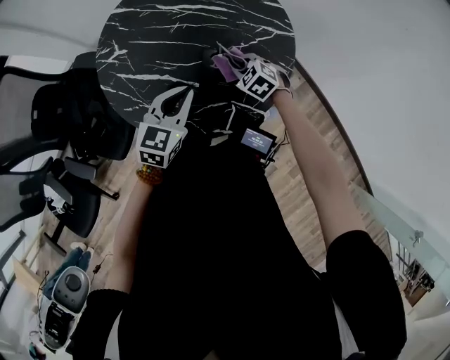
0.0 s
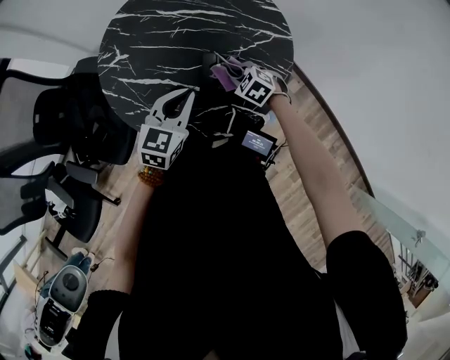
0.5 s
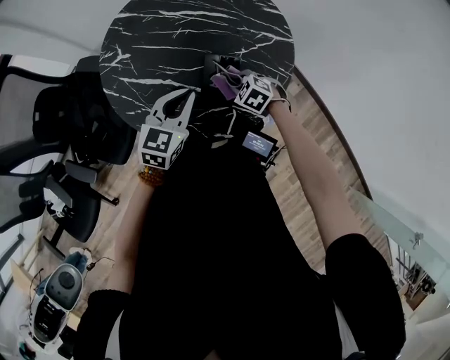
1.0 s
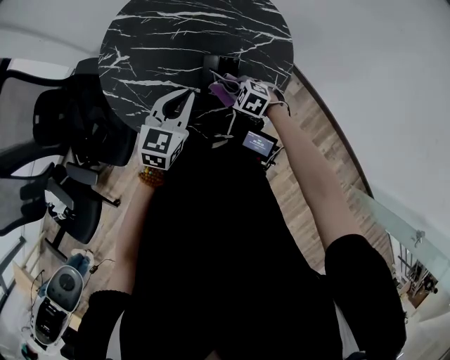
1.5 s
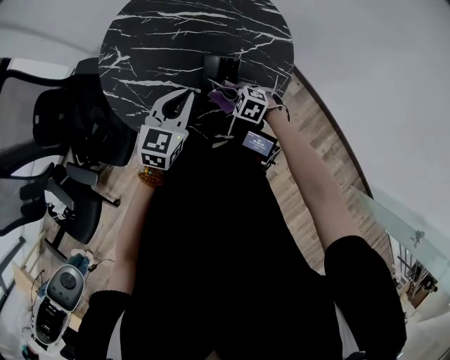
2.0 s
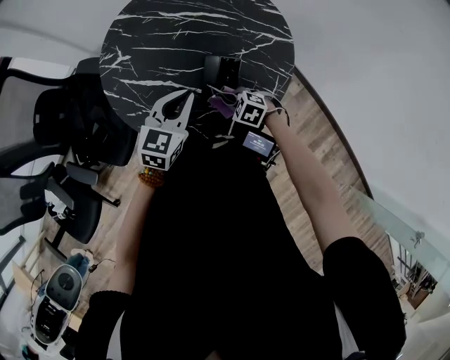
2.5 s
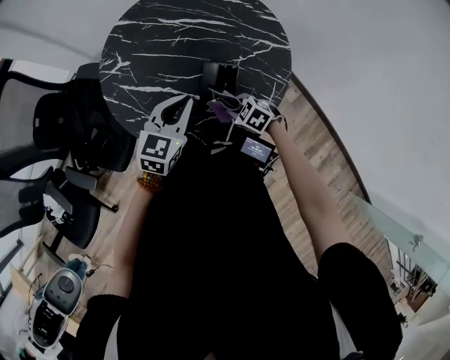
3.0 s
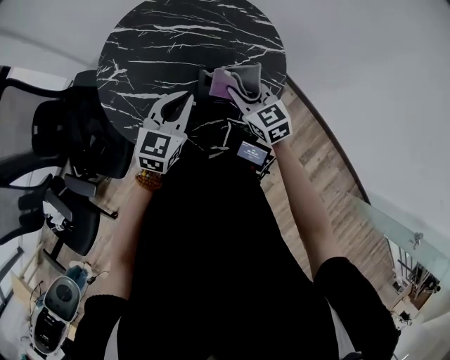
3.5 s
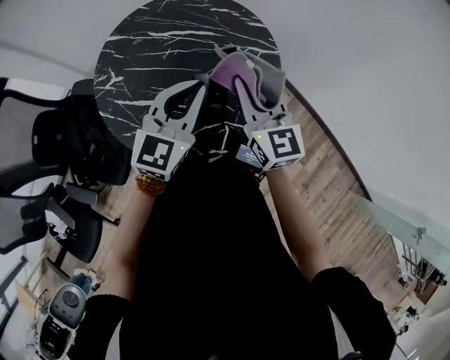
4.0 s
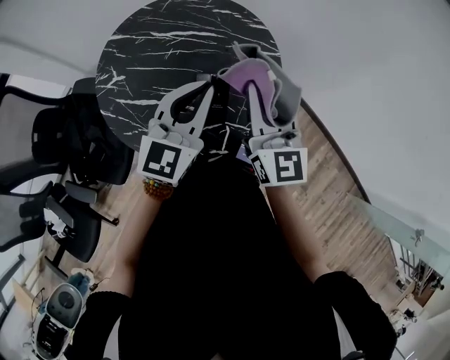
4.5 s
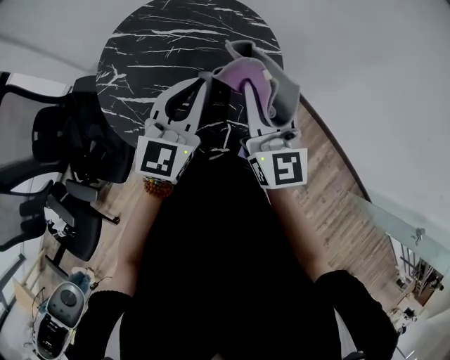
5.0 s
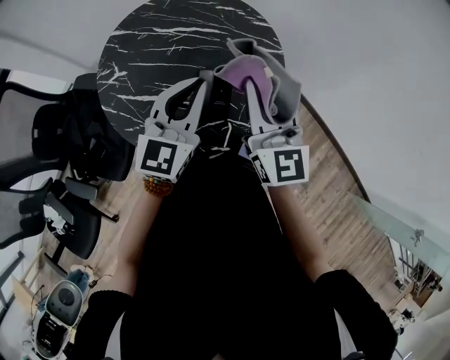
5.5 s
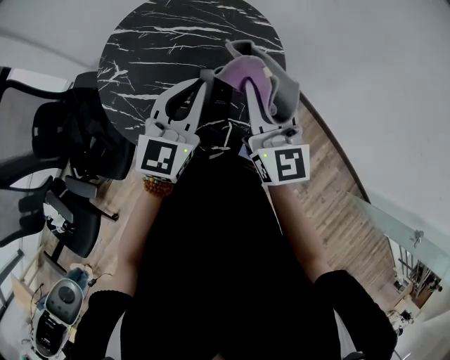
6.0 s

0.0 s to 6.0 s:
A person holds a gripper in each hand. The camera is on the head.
0.0 to 2.0 s: The right gripper moves backward, roughly 10 cm.
2.0 to 4.0 s: The left gripper travels upward by roughly 15 cm. The right gripper is displaced upward by about 35 cm, and tips its fingers upward by about 60 degrees.
4.0 to 6.0 s: The right gripper is displaced upward by approximately 5 cm.

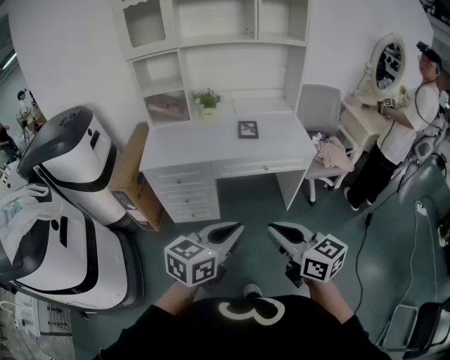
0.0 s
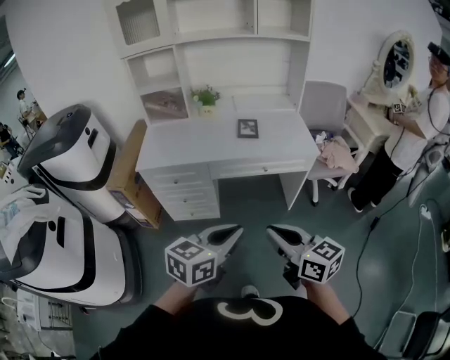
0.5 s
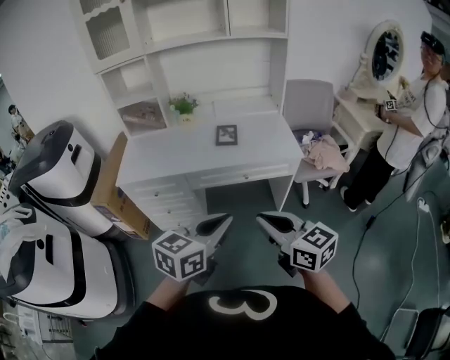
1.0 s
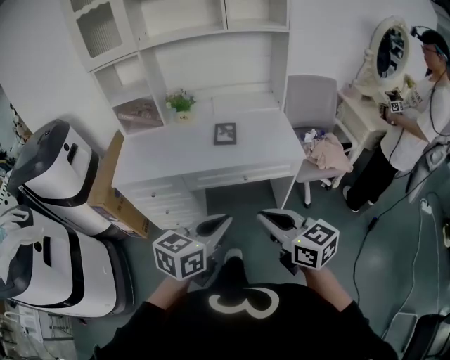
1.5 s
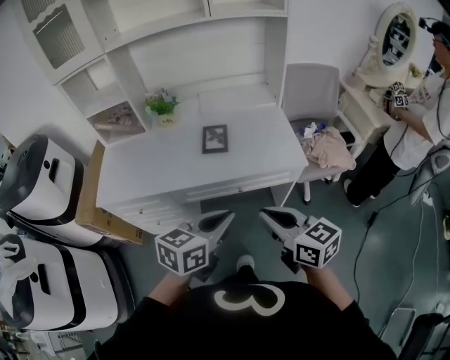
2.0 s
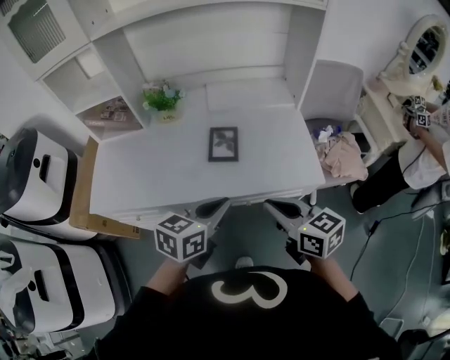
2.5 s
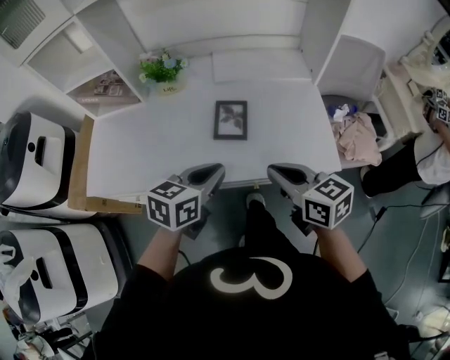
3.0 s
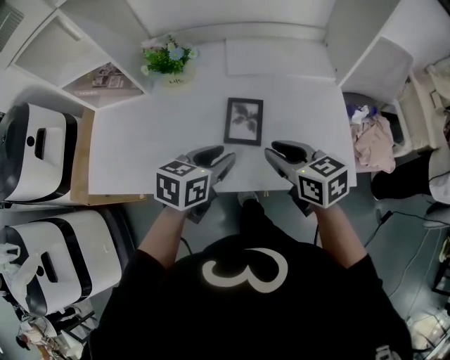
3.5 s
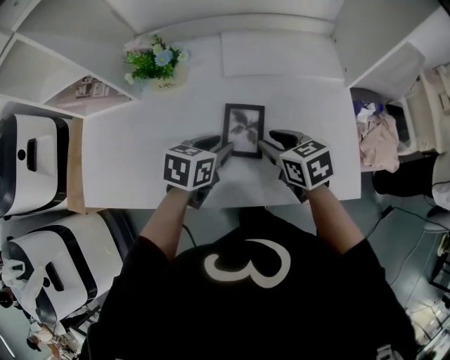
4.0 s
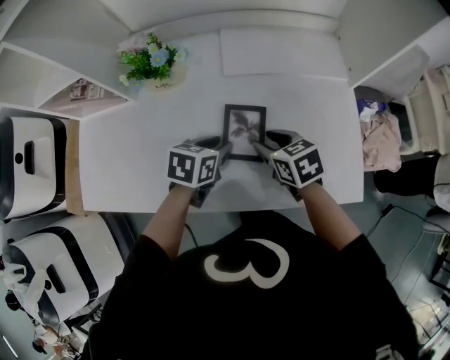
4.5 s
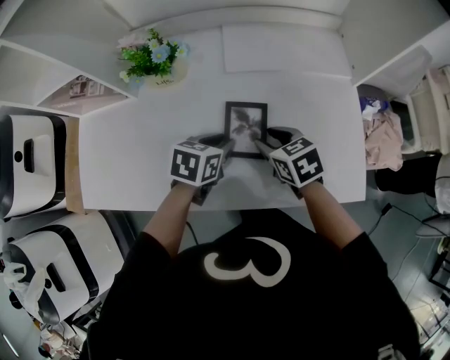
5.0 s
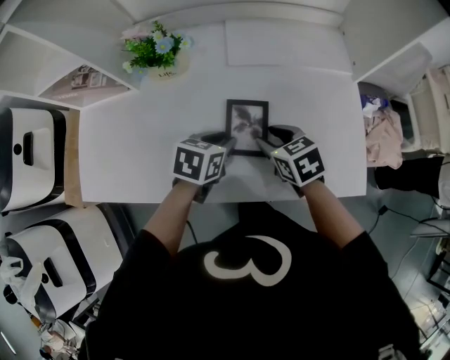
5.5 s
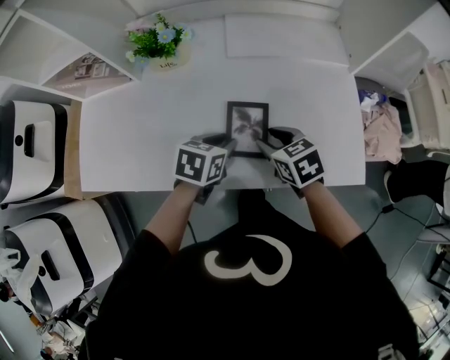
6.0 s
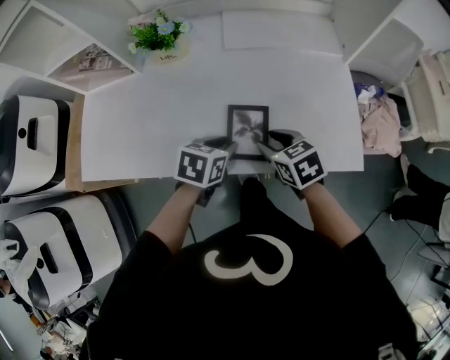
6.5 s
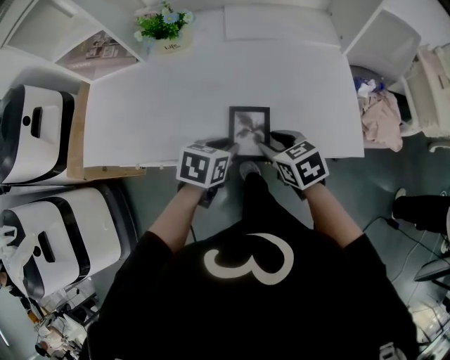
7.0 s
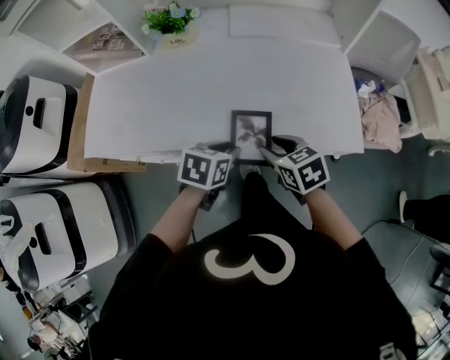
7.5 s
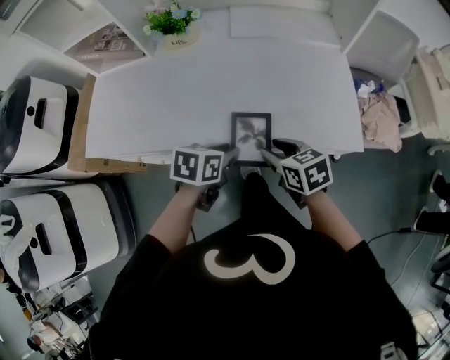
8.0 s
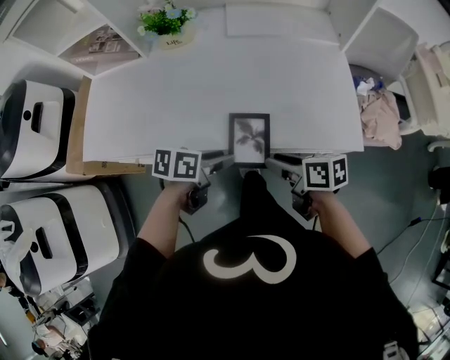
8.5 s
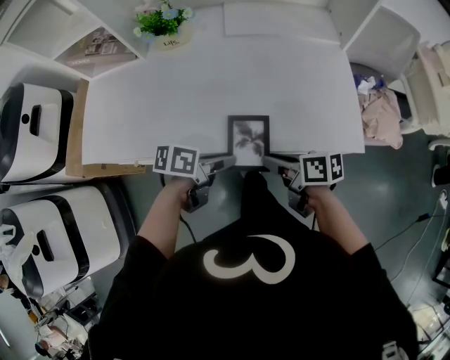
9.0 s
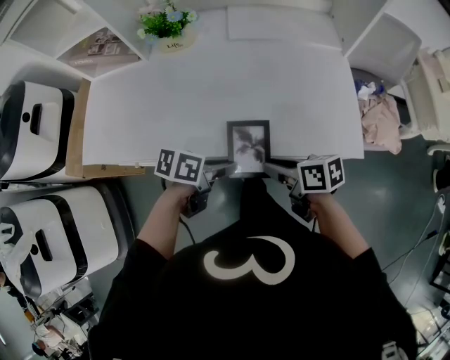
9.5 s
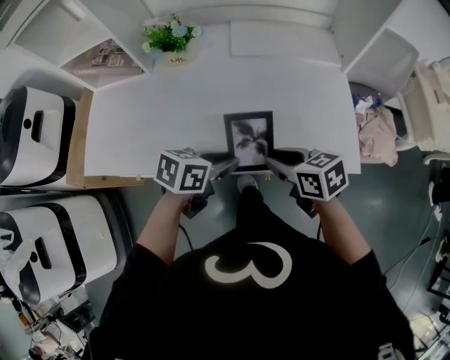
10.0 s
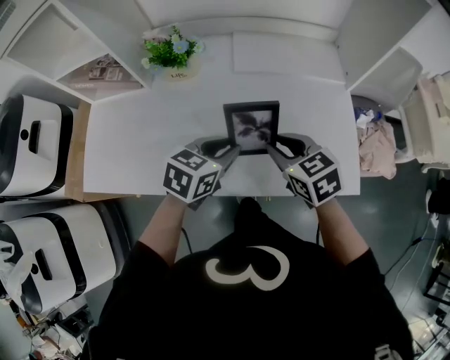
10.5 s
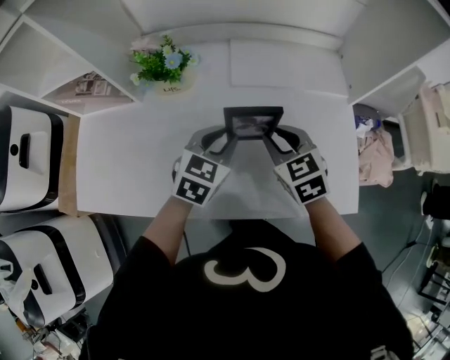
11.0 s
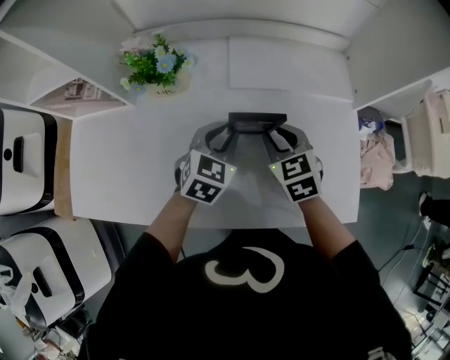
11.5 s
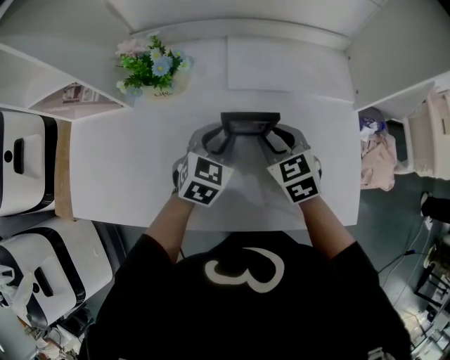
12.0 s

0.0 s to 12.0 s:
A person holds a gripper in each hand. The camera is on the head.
0.0 to 2.0 s: The grippers both shift forward and to the right by about 35 cm.
2.0 to 4.0 s: The pair of grippers is taken forward, roughly 40 cm. Both grippers move downward, approximately 20 cm. The left gripper turns by about 30 degrees, and opens its fingers. The right gripper changes its angle by approximately 30 degrees, and opens up.
4.0 to 6.0 s: The right gripper ends up approximately 5 cm from where it was. The left gripper changes place by approximately 5 cm.
6.0 to 8.0 s: Both grippers move backward, about 15 cm.
8.0 to 10.0 s: The right gripper shifts by approximately 5 cm. The left gripper moves some 5 cm.
10.0 to 12.0 s: The grippers both shift forward by about 25 cm. The right gripper turns by approximately 30 degrees, while the left gripper swivels about 40 degrees.

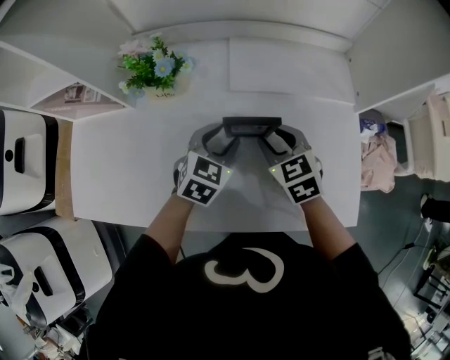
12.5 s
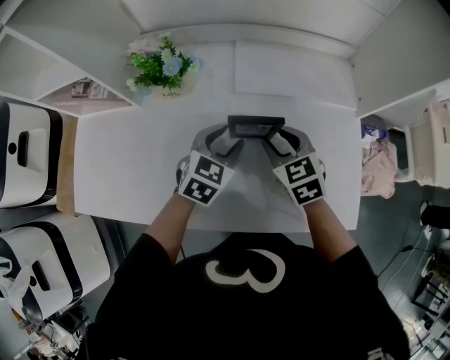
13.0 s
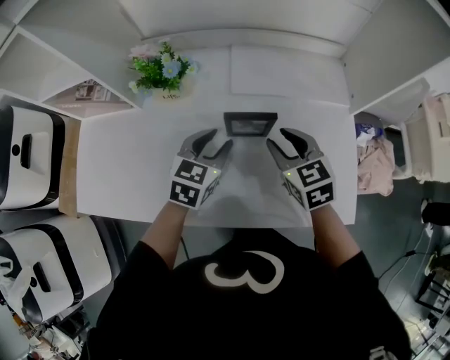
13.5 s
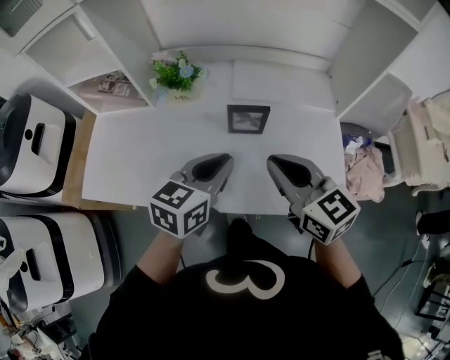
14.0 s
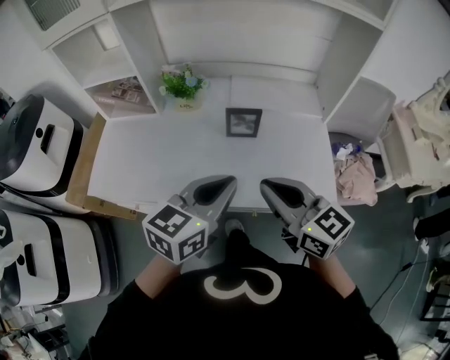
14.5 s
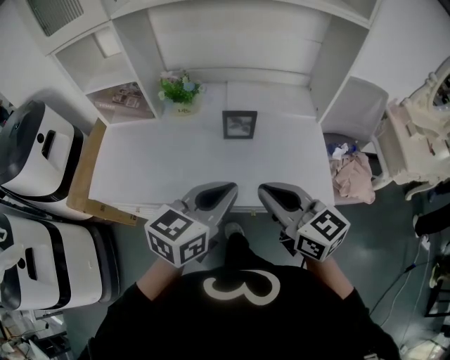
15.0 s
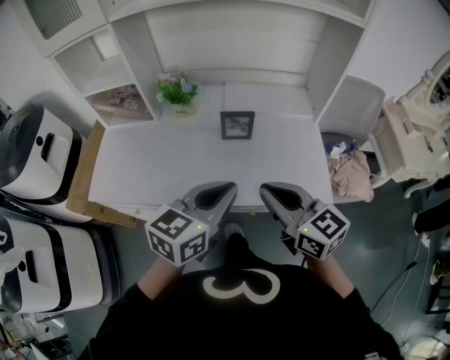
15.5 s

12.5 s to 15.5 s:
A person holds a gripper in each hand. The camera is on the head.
12.5 to 14.0 s: The grippers both shift upward and backward by about 25 cm. The left gripper swivels about 30 degrees, and closes its fingers, while the right gripper rotates about 30 degrees, and closes.
14.0 to 15.5 s: The left gripper is displaced backward and upward by about 15 cm. Meanwhile the right gripper heads backward, covering about 15 cm.

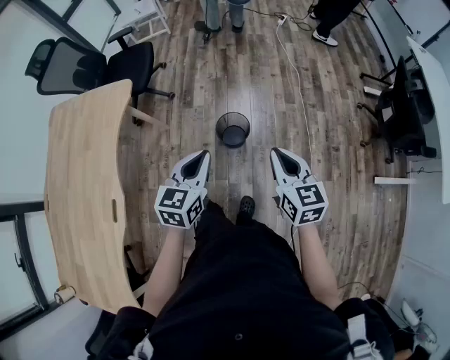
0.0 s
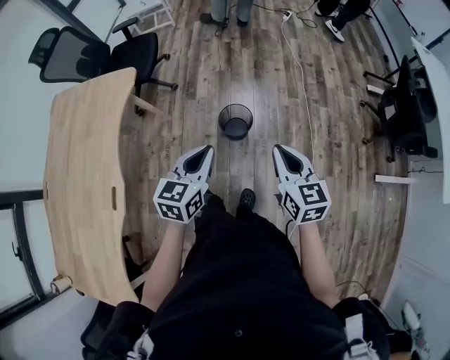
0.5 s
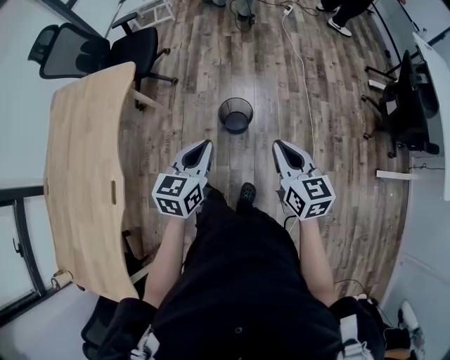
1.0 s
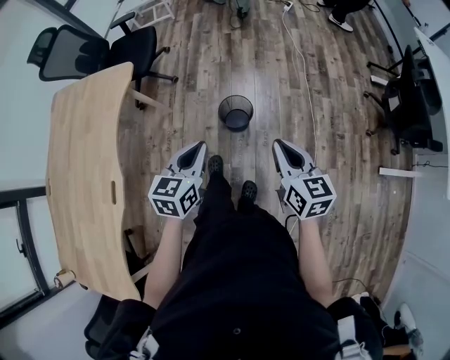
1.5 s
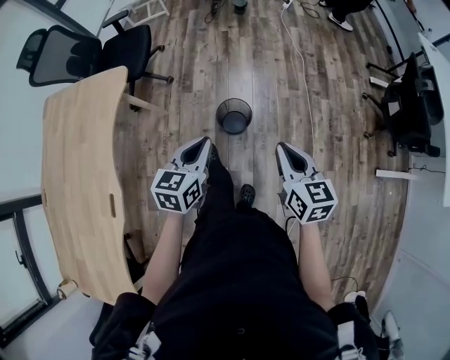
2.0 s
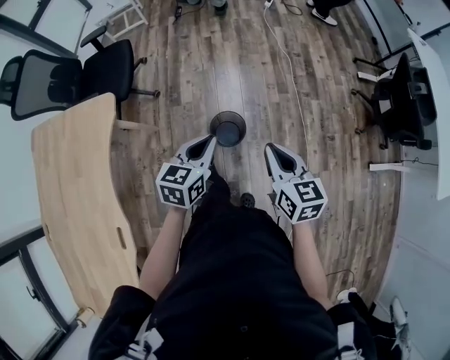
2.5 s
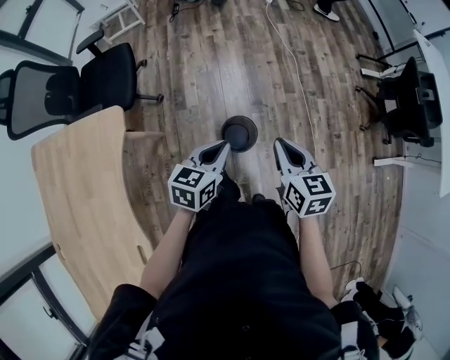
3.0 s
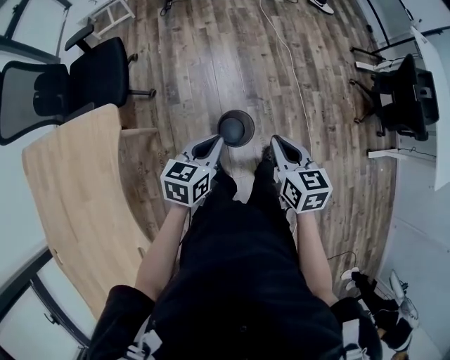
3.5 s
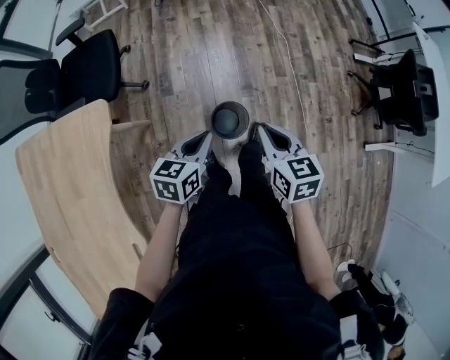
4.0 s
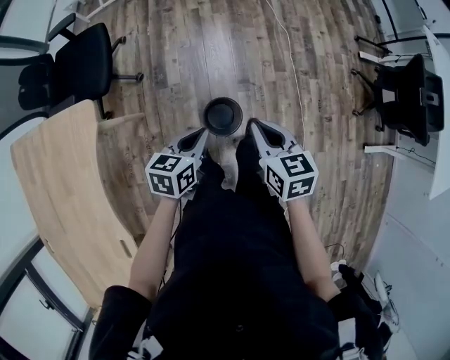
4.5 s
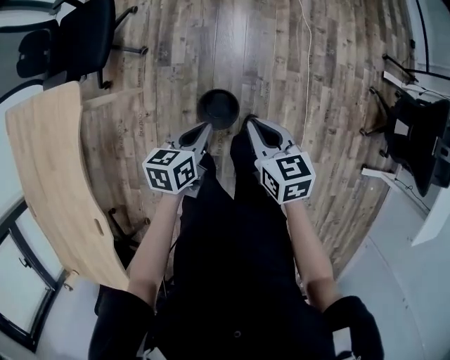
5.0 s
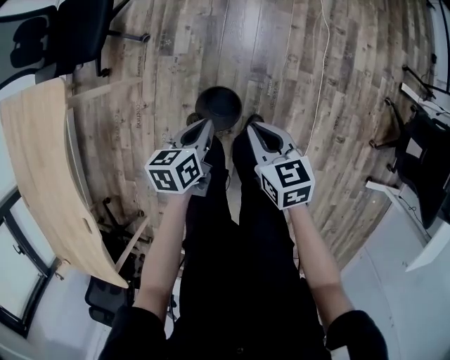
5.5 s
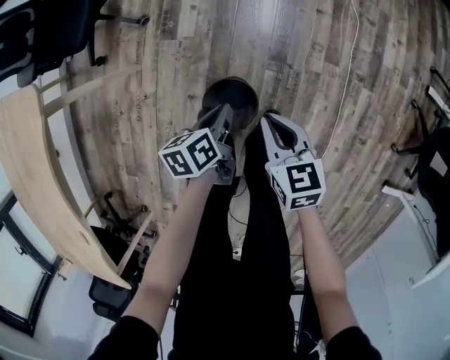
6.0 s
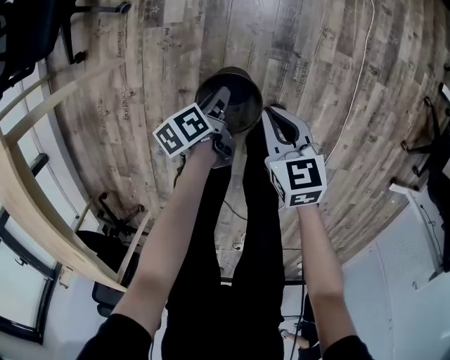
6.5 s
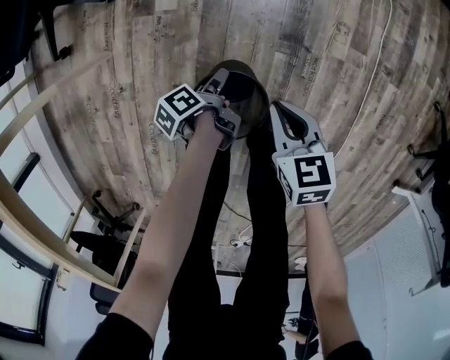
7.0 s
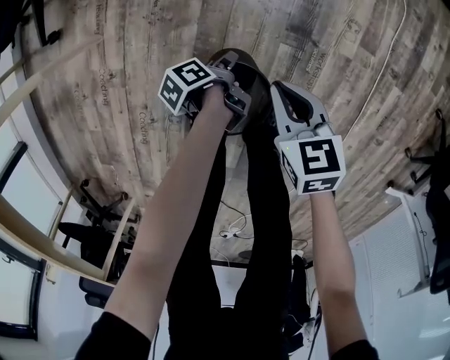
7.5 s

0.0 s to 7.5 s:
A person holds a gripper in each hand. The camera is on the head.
0.0 to 2.0 s: The left gripper ends up roughly 5 cm from where it was.
2.0 to 4.0 s: The right gripper travels forward and to the left by roughly 25 cm; the left gripper moves forward, to the left and downward, some 20 cm.
4.0 to 5.5 s: The right gripper is displaced downward, forward and to the right by approximately 20 cm, and turns by about 20 degrees. Meanwhile the left gripper travels downward, to the right and forward by some 20 cm, and turns by approximately 30 degrees.
5.5 to 7.5 s: Both grippers move downward, some 40 cm. The left gripper twists roughly 60 degrees counterclockwise, seen from behind, and opens up.
